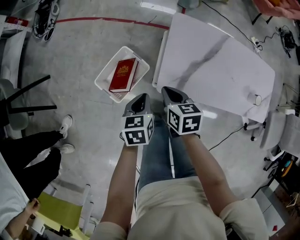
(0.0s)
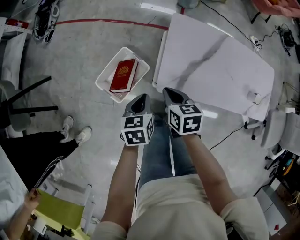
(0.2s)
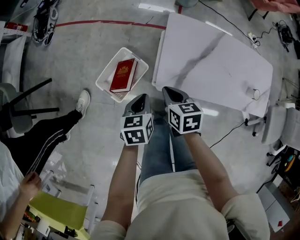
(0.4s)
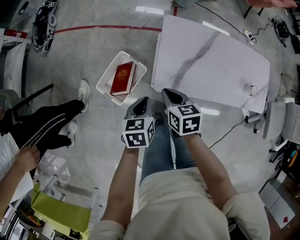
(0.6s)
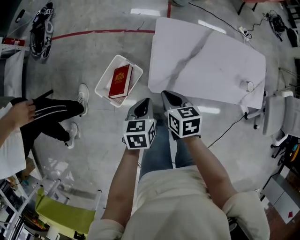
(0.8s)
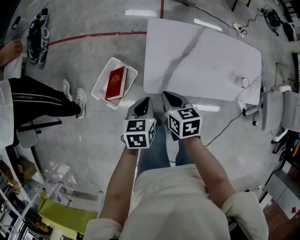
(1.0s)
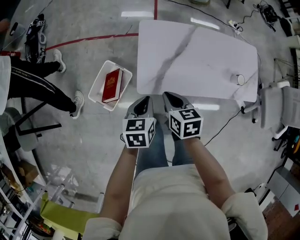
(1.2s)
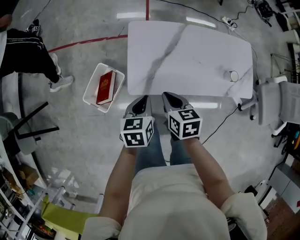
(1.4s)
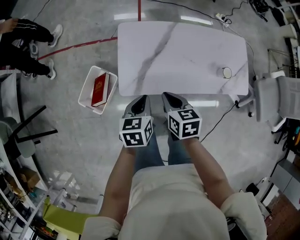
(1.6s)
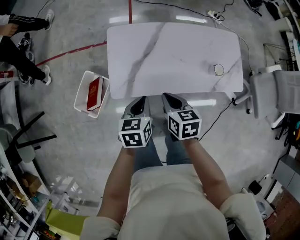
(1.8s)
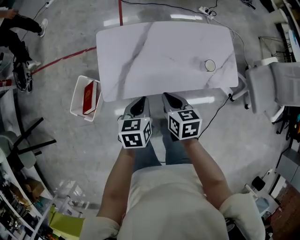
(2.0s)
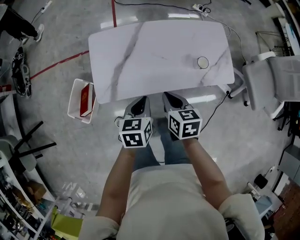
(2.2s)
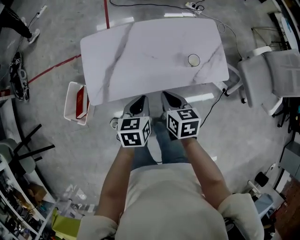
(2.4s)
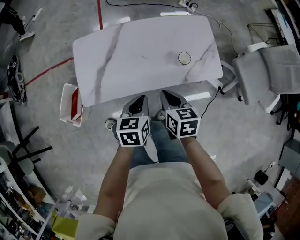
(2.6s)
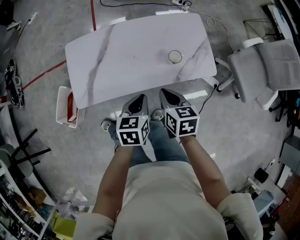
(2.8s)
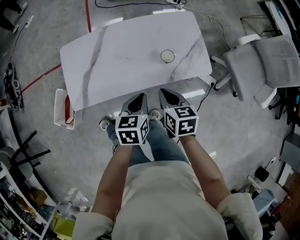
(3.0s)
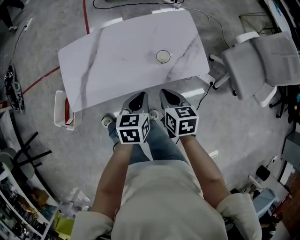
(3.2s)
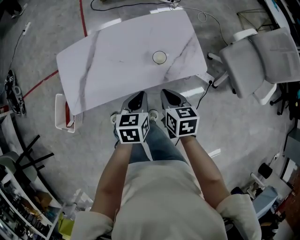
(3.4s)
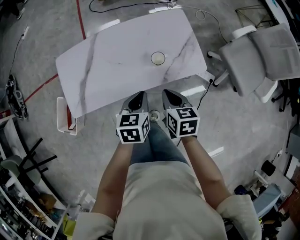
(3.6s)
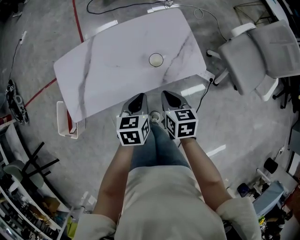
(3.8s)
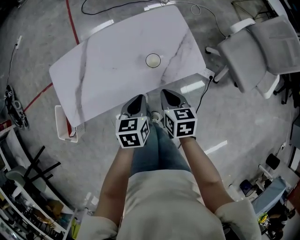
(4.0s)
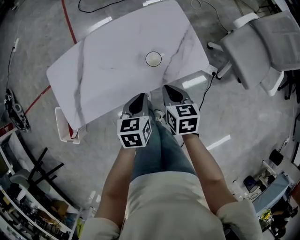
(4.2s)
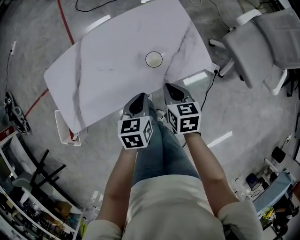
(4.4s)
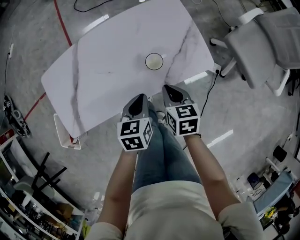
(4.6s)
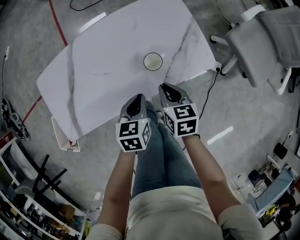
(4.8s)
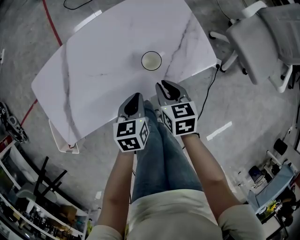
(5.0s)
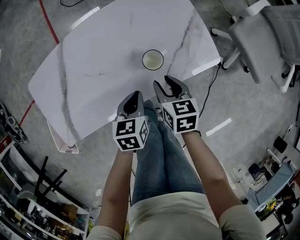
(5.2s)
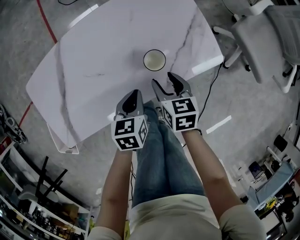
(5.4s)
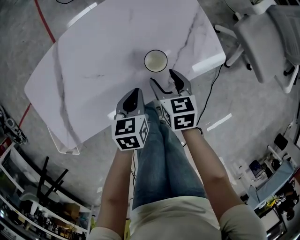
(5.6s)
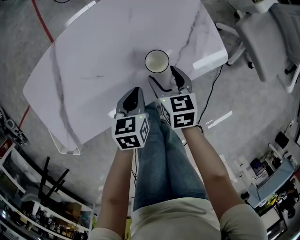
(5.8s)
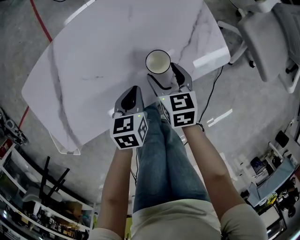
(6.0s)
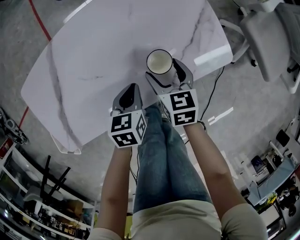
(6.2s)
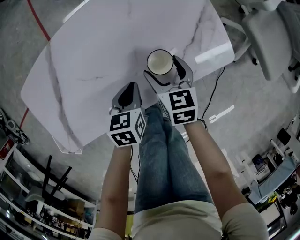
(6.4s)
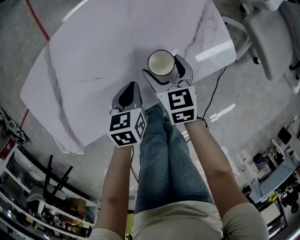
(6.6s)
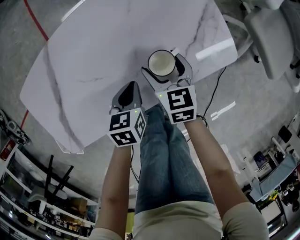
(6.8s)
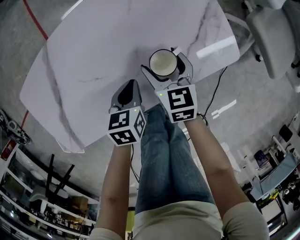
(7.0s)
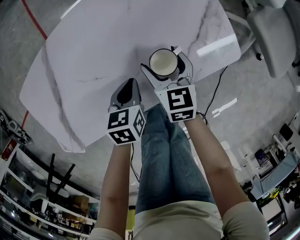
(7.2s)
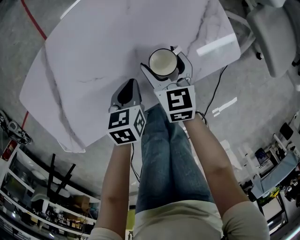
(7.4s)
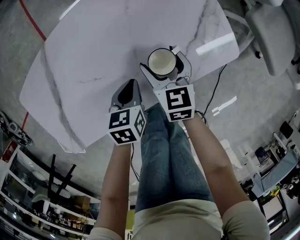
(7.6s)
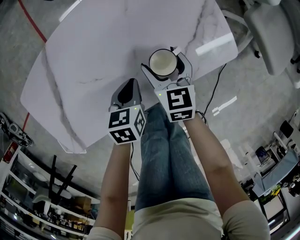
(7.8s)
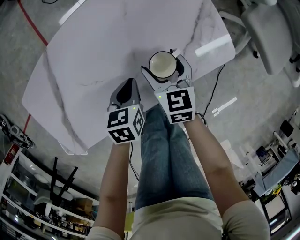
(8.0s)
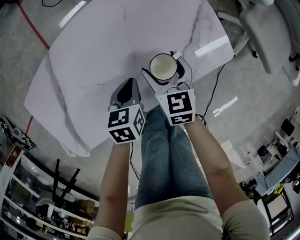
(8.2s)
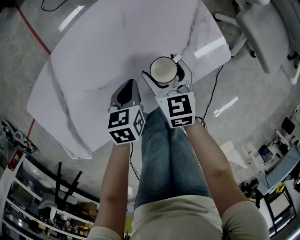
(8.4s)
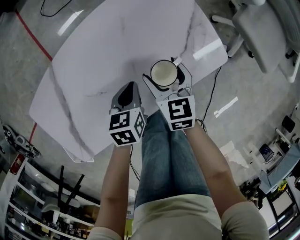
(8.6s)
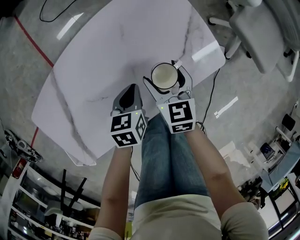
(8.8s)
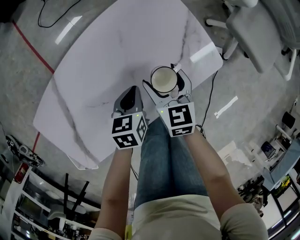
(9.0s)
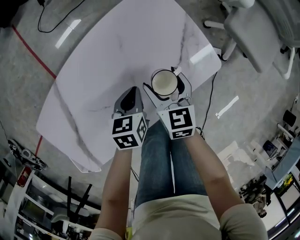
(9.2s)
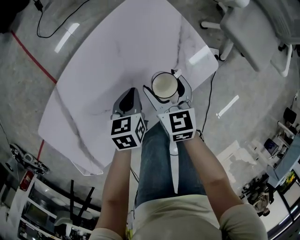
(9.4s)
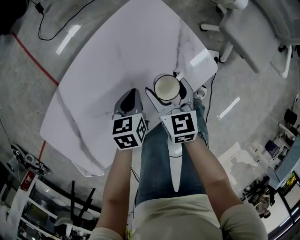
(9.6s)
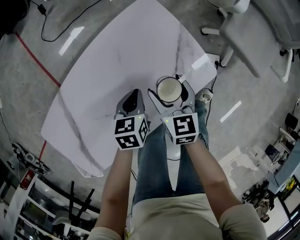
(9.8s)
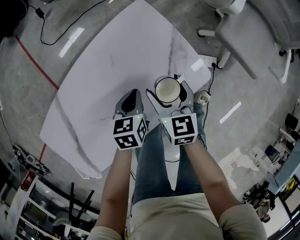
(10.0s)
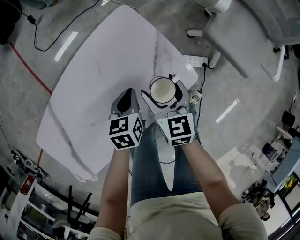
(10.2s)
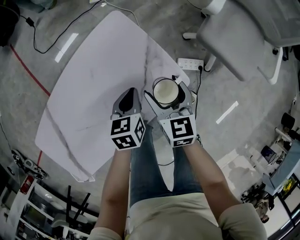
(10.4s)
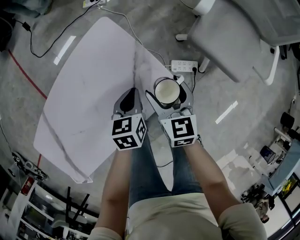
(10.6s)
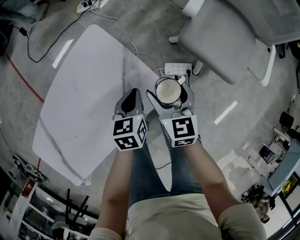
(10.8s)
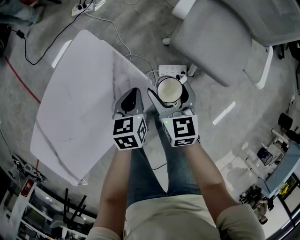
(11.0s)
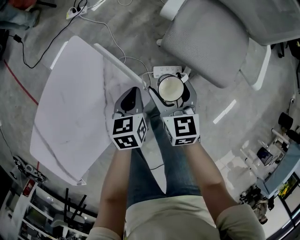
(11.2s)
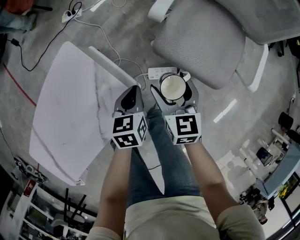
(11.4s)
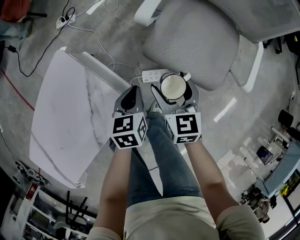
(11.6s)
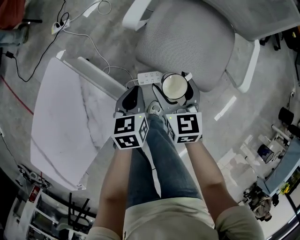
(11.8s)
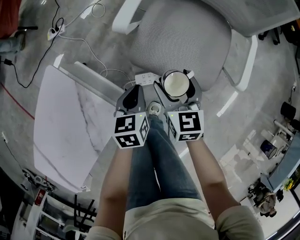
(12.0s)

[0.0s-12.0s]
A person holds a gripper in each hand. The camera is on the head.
0.0s to 1.6s: The right gripper shifts some 20 cm to the right; the left gripper moves to the right and upward, about 25 cm.
1.6s to 3.0s: The two grippers go about 35 cm to the right.
3.0s to 4.4s: The left gripper travels downward, forward and to the right by some 15 cm. Meanwhile the right gripper travels downward, to the right and forward by some 15 cm.
4.4s to 6.0s: Both grippers move downward and forward, approximately 15 cm. The right gripper opens.
6.0s to 7.6s: There are only small adjustments of the grippers.
7.6s to 9.0s: The right gripper travels upward by approximately 5 cm, while the left gripper heads forward and upward, covering roughly 10 cm.
9.0s to 10.4s: The left gripper shifts roughly 15 cm to the right and forward. The right gripper travels to the right by approximately 15 cm.
10.4s to 12.0s: The two grippers go some 40 cm to the right and forward.

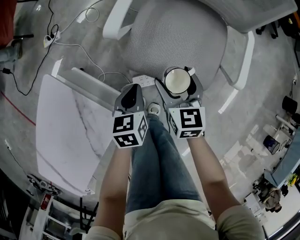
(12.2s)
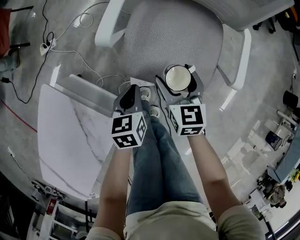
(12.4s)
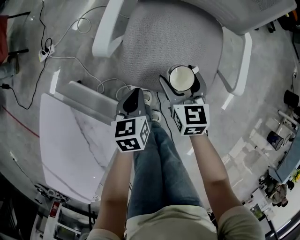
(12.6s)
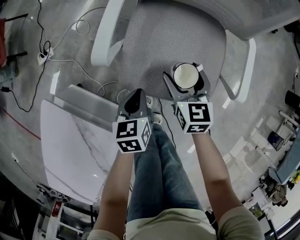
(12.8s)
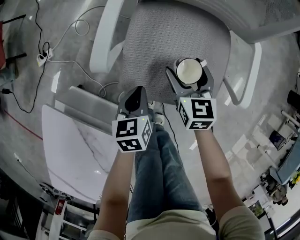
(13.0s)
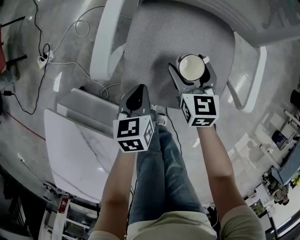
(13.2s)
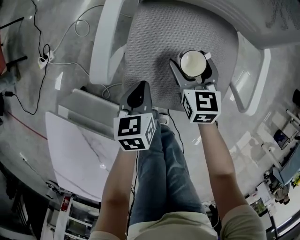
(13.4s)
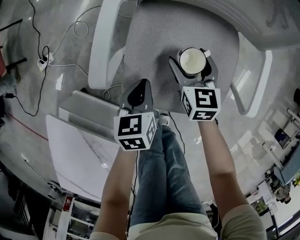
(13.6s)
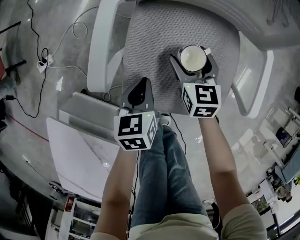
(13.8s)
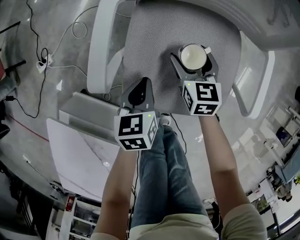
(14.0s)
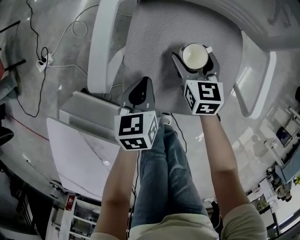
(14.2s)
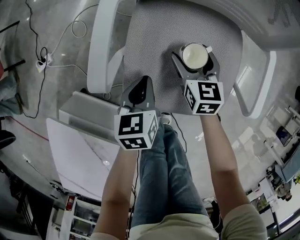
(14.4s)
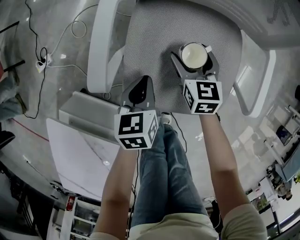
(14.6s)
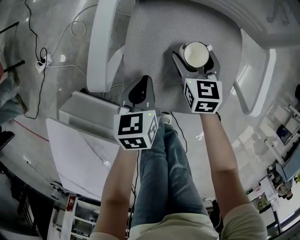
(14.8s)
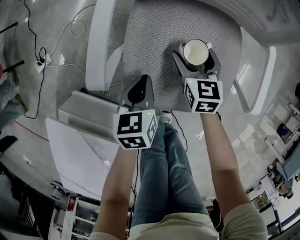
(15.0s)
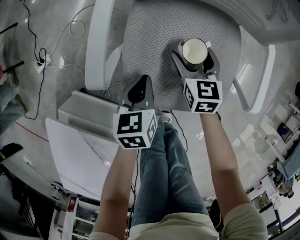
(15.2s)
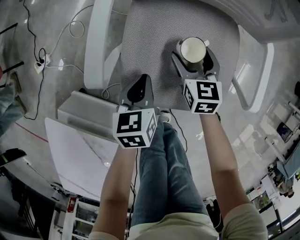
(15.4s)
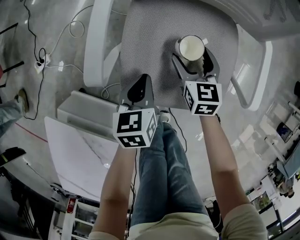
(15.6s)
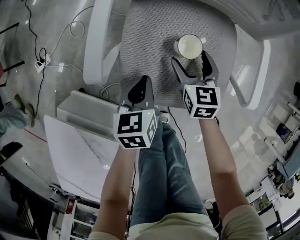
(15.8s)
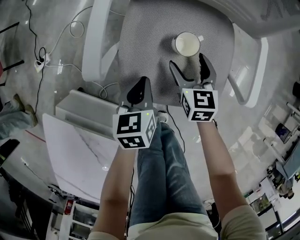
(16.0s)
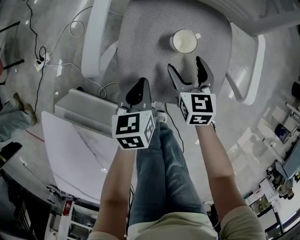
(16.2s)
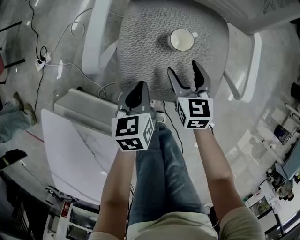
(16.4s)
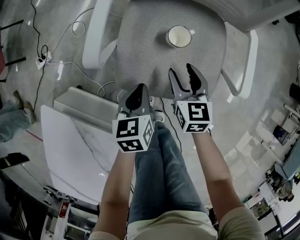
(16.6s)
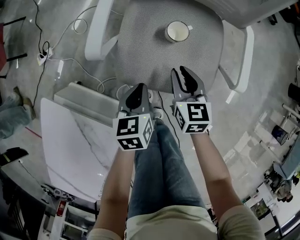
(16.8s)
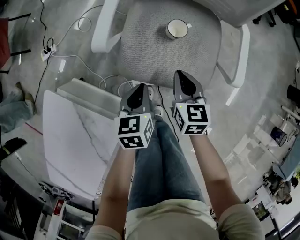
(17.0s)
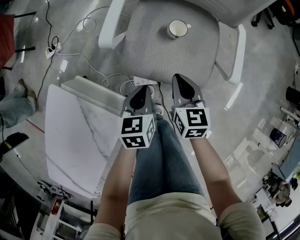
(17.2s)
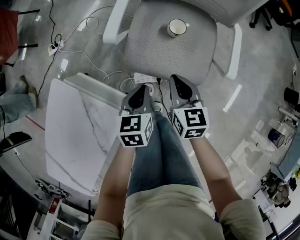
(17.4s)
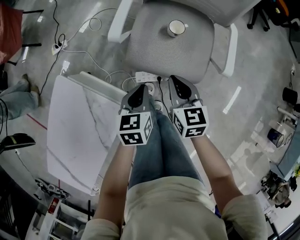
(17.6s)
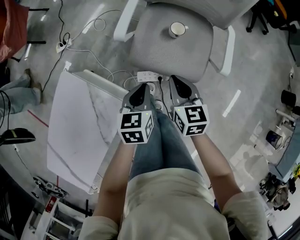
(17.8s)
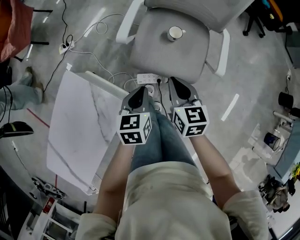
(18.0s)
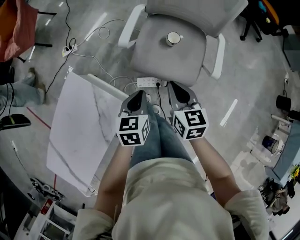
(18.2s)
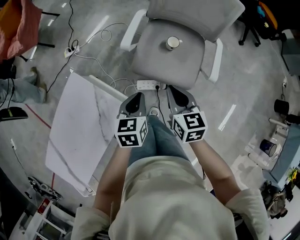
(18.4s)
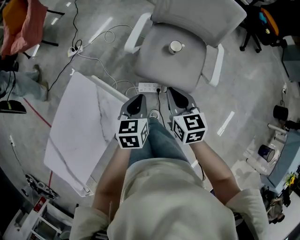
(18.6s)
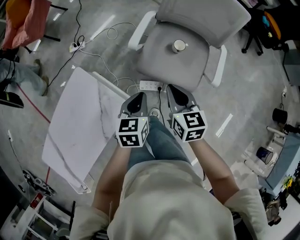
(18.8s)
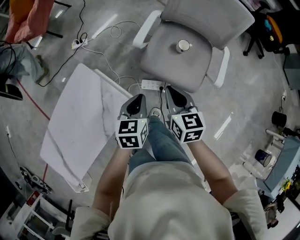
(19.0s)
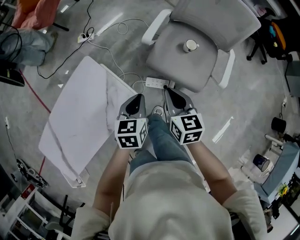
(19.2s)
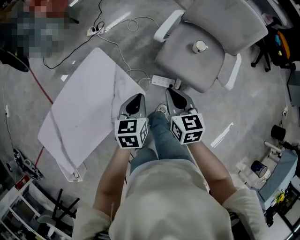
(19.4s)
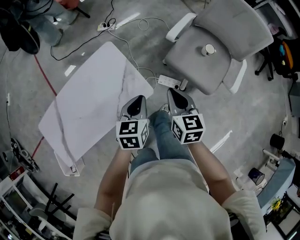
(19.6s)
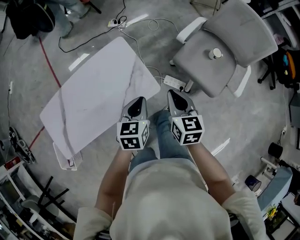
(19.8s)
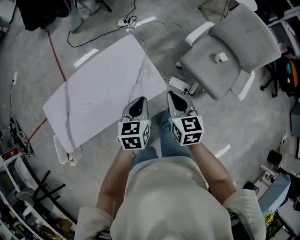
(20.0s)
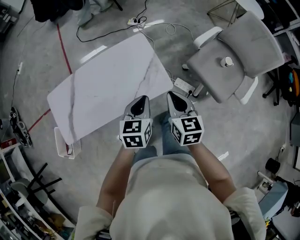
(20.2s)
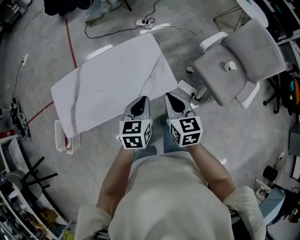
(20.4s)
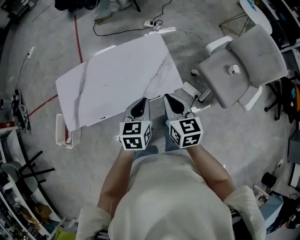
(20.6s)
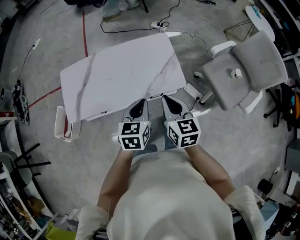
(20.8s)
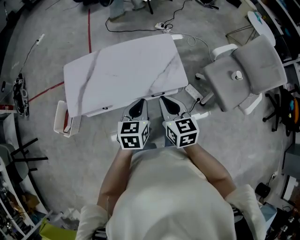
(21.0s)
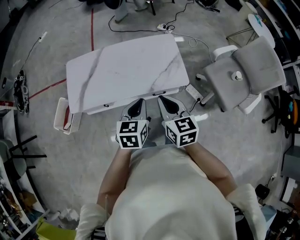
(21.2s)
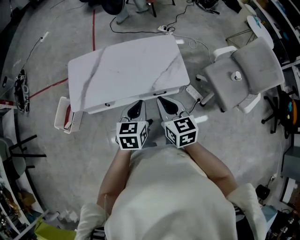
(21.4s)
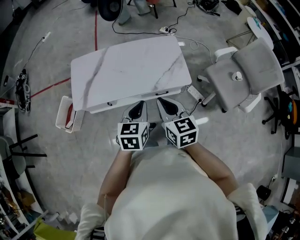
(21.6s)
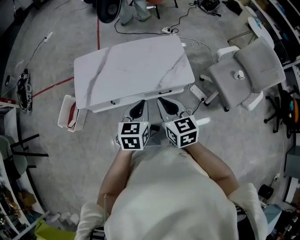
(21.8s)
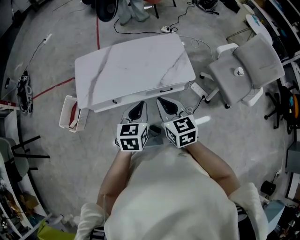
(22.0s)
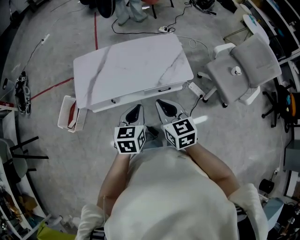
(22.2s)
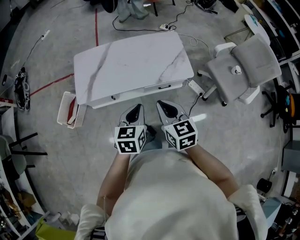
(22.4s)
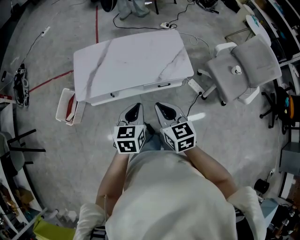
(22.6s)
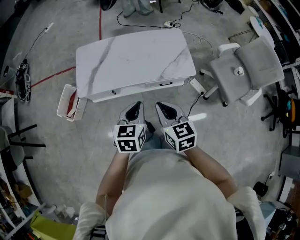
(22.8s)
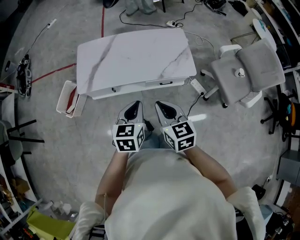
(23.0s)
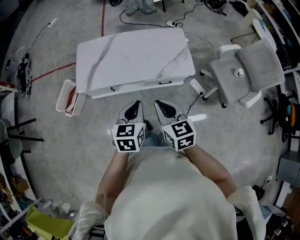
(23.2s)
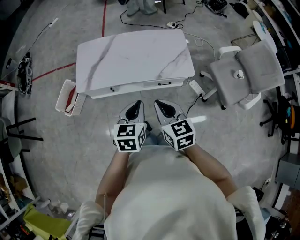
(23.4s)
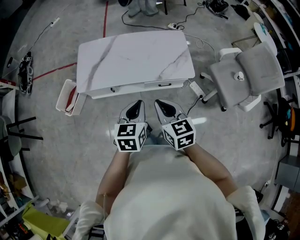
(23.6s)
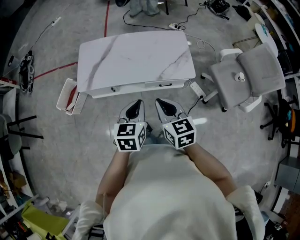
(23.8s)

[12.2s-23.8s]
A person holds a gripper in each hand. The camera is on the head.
12.2s to 13.6s: The right gripper is displaced forward and downward by roughly 20 cm. The left gripper heads forward, covering some 15 cm.
13.6s to 15.0s: The grippers stay close to where they were, moving slightly.
15.0s to 16.6s: The left gripper heads backward, covering about 10 cm. The right gripper travels backward and upward by about 15 cm, and closes.
16.6s to 18.0s: Both grippers move upward and backward, some 25 cm. The right gripper closes.
18.0s to 19.4s: The grippers both shift to the left, backward and upward by roughly 20 cm.
19.4s to 21.0s: The right gripper changes place by roughly 40 cm, and turns by approximately 30 degrees, while the left gripper changes place by about 40 cm, and turns by roughly 30 degrees.
21.0s to 22.4s: The grippers both shift to the left and backward by roughly 20 cm.
22.4s to 23.8s: There are only small adjustments of the grippers.
